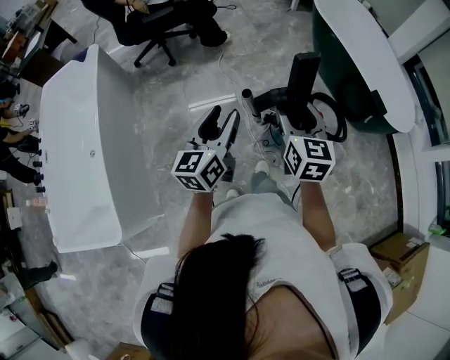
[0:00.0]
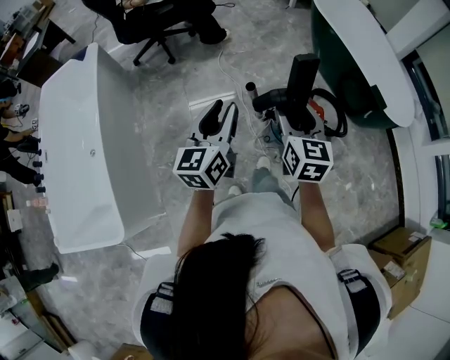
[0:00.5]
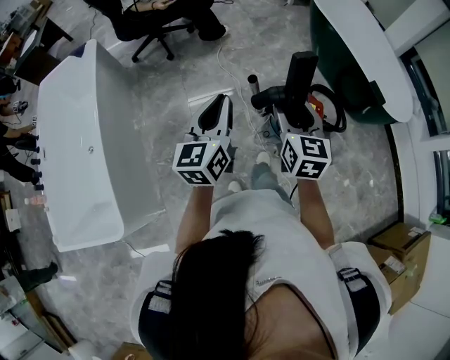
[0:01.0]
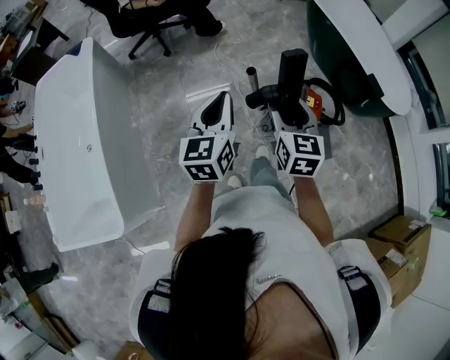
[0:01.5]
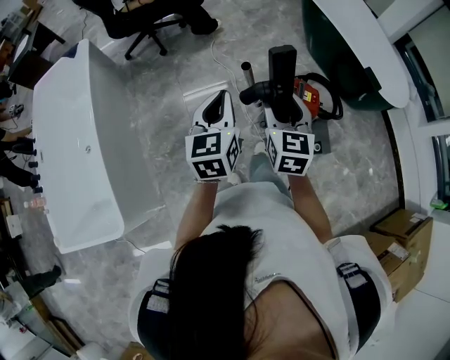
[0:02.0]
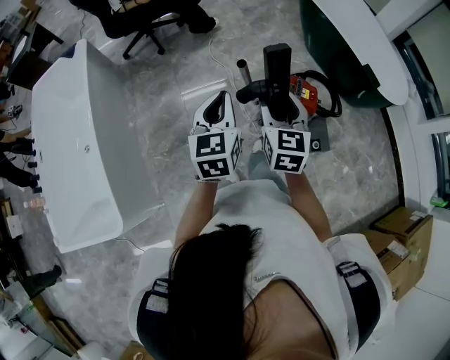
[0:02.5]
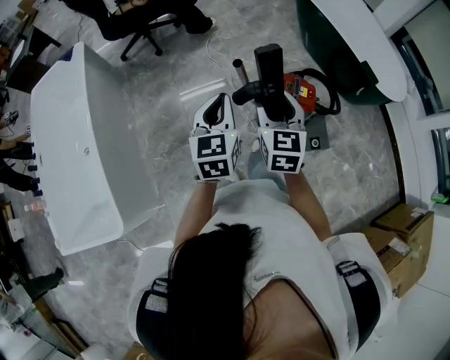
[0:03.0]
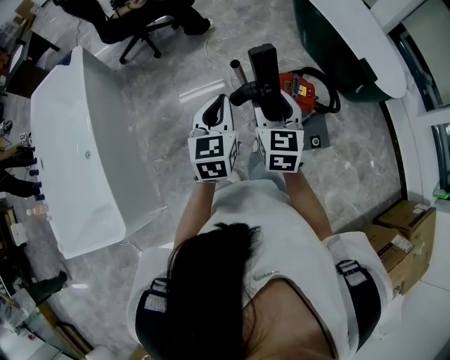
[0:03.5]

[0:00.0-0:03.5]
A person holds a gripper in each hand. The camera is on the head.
0.0 to 2.0 s: The right gripper is displaced backward by roughly 5 cm. The left gripper closes.
2.0 to 3.5 s: The grippers make only small movements.

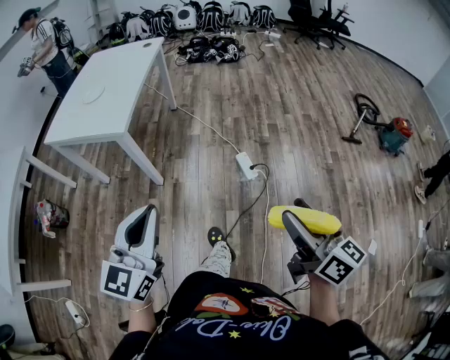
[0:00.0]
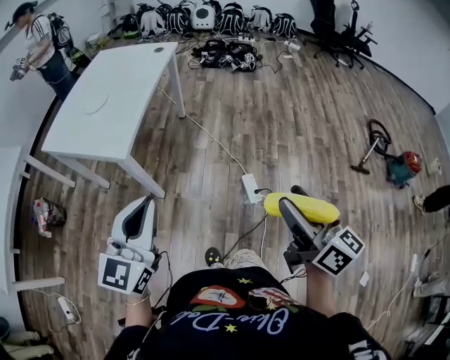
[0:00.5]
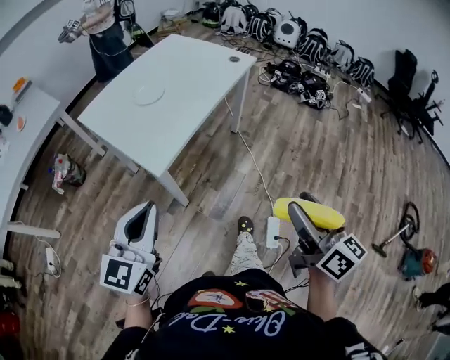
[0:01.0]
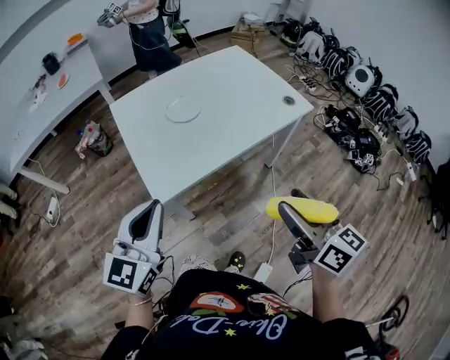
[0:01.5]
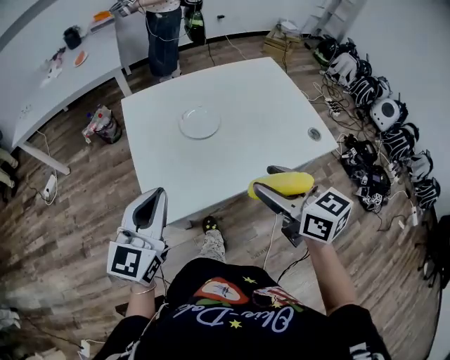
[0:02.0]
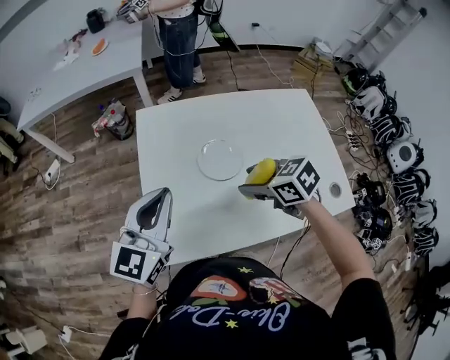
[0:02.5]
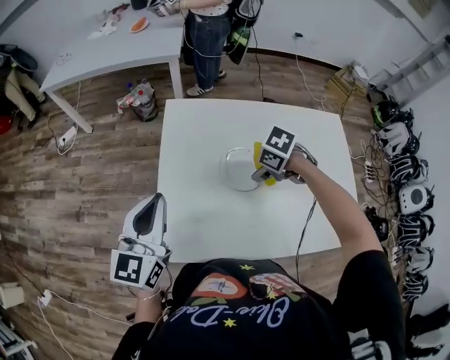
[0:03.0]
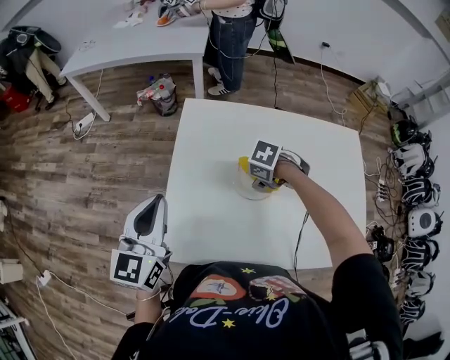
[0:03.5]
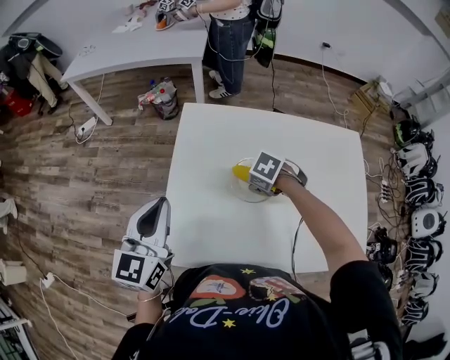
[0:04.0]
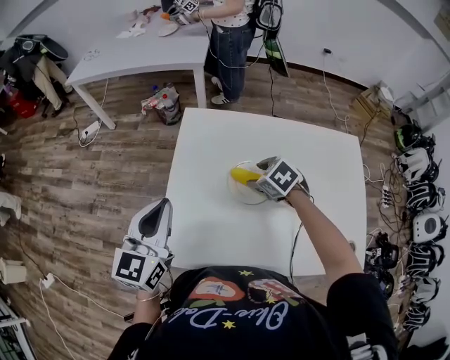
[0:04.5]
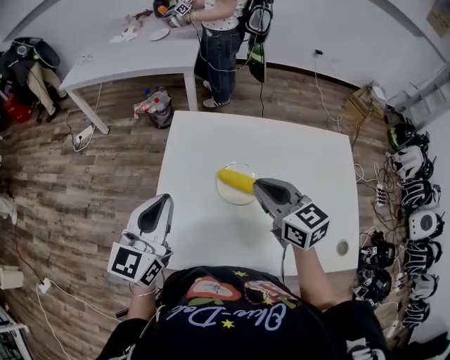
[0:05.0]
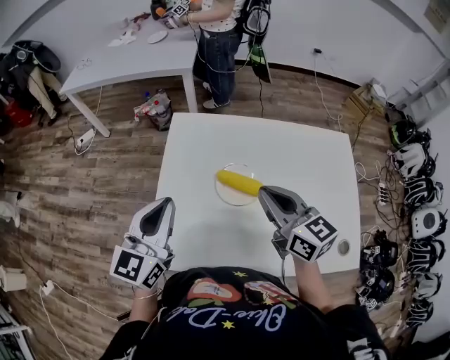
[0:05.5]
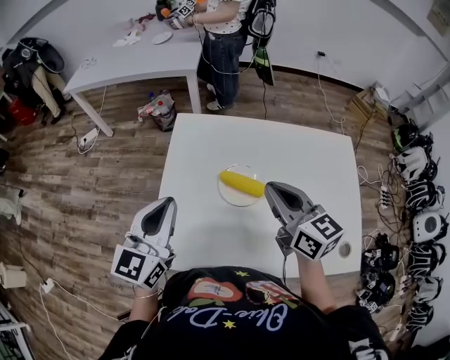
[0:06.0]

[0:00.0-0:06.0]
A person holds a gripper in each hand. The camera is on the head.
0.0 to 2.0 s: Both grippers are carried some 70 cm. The left gripper swivels roughly 60 degrees; the right gripper swivels some 80 degrees.
2.0 to 4.0 s: The left gripper changes place by roughly 15 cm, and changes its angle by roughly 30 degrees. The right gripper moves approximately 40 cm, and tilts its fingers some 60 degrees downward.
4.0 to 6.0 s: The left gripper moves some 5 cm, while the right gripper travels upward by roughly 25 cm, tilts its fingers roughly 70 degrees upward, and closes up.

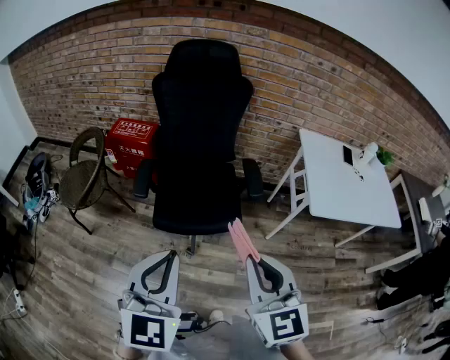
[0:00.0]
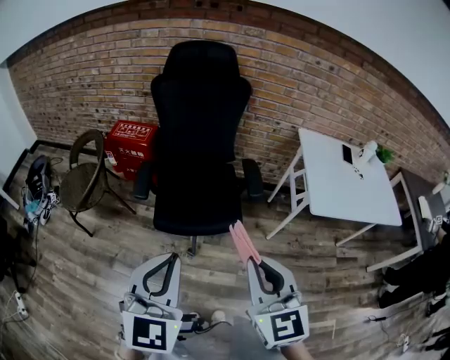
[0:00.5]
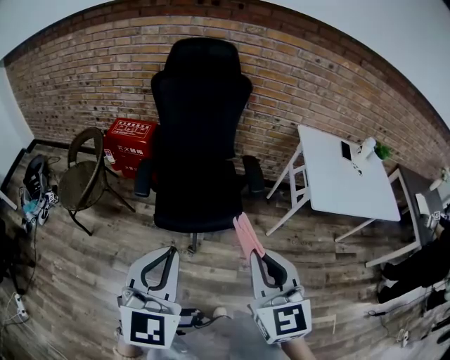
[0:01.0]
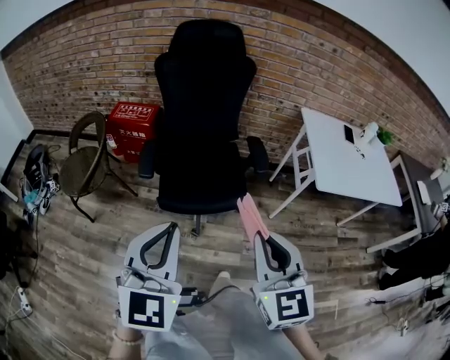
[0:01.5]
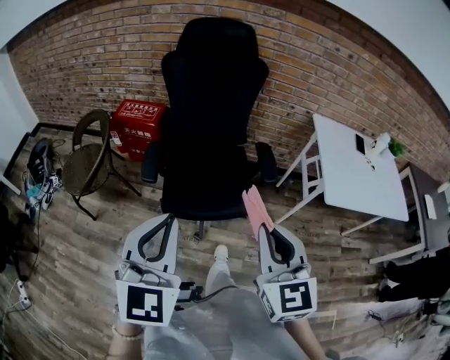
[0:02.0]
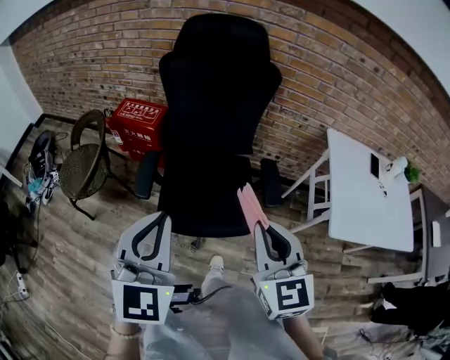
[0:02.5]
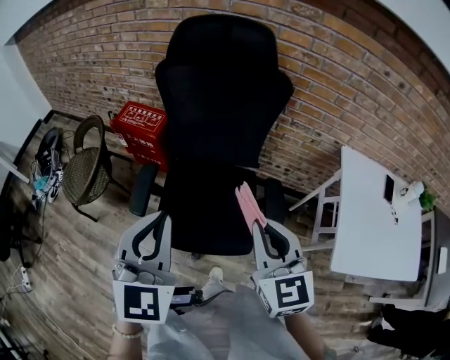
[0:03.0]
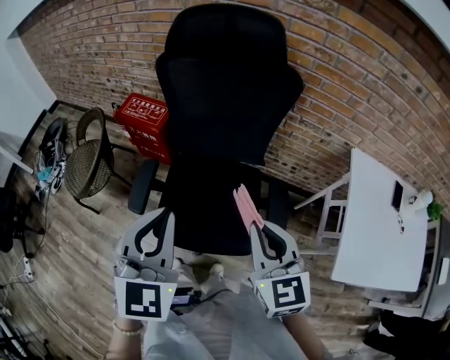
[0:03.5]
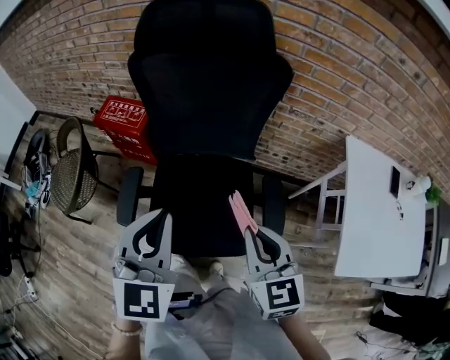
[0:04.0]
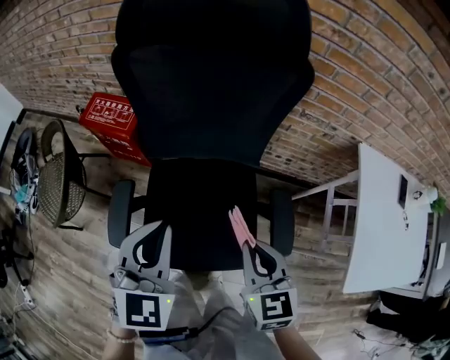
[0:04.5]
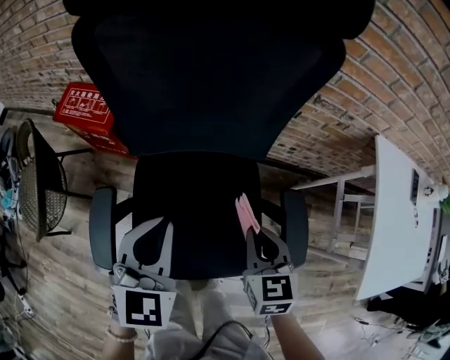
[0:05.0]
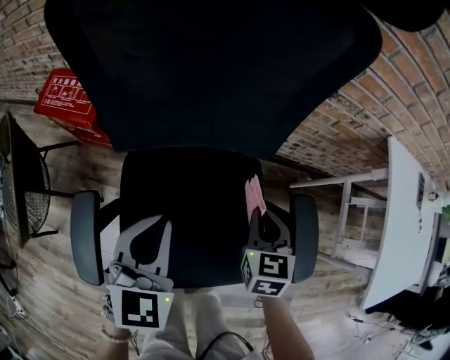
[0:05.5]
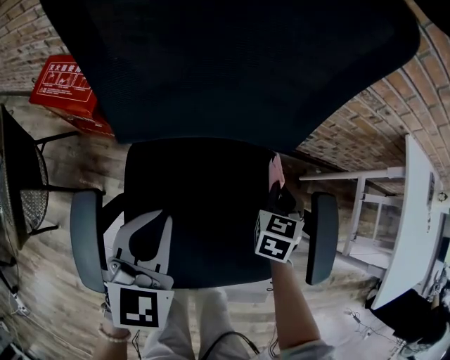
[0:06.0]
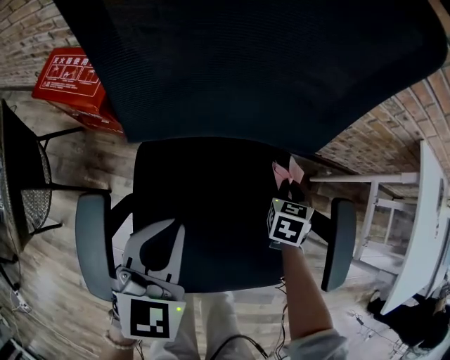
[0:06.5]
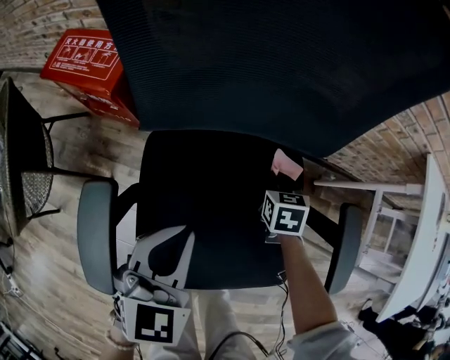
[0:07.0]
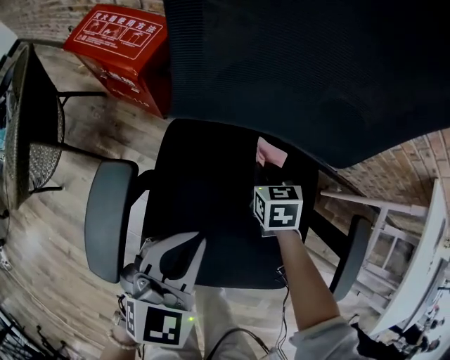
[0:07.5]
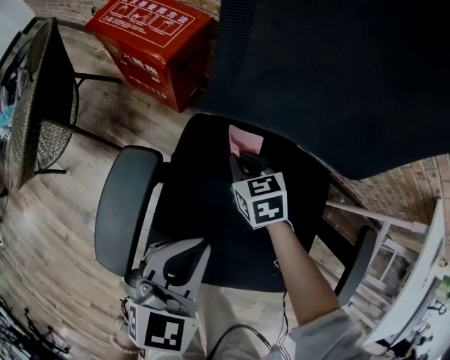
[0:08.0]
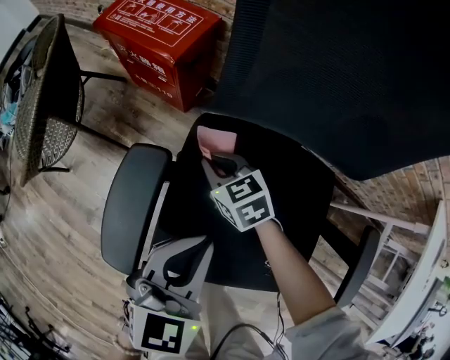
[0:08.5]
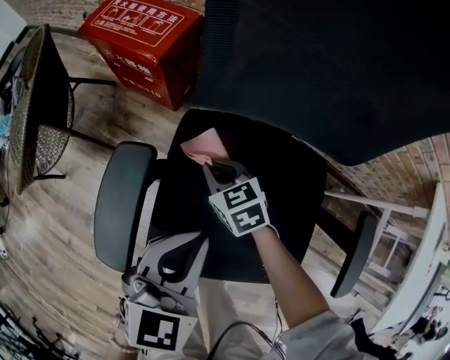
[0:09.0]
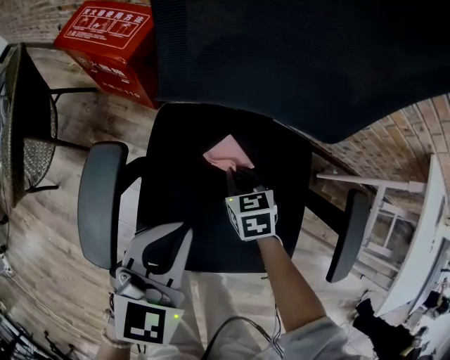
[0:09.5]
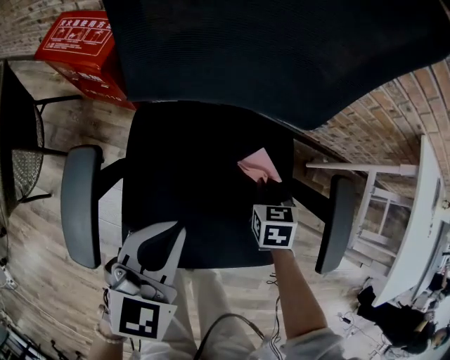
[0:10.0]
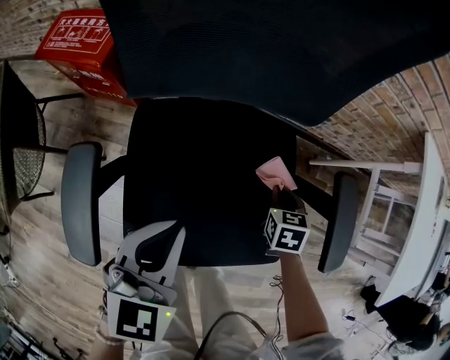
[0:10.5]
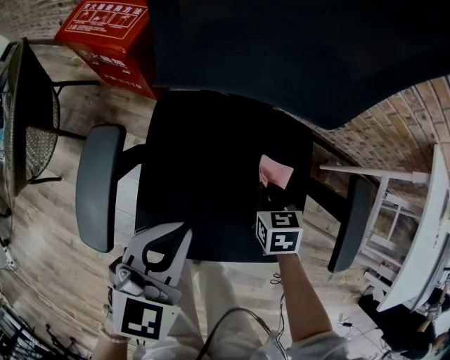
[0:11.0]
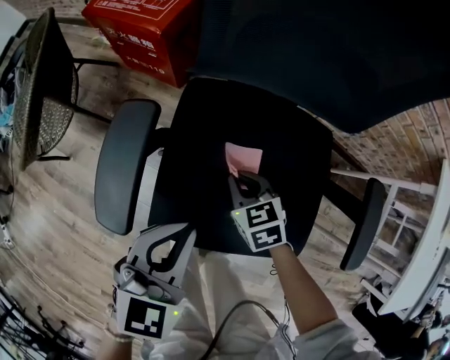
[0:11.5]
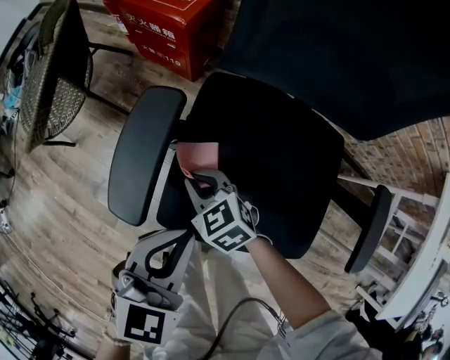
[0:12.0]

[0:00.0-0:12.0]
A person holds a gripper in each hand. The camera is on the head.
0.0 to 2.0 s: The right gripper is displaced forward by roughly 5 cm. The left gripper shifts approximately 10 cm forward and to the left.
2.0 to 4.0 s: Both grippers are carried forward, approximately 40 cm.
4.0 to 6.0 s: Both grippers travel together downward, some 40 cm. The right gripper rotates approximately 40 degrees.
6.0 to 8.0 s: The right gripper shifts by approximately 35 cm, and turns by some 50 degrees. Meanwhile the left gripper changes place by roughly 10 cm.
8.0 to 10.0 s: The right gripper changes place by approximately 25 cm, and turns by about 30 degrees; the left gripper ends up some 5 cm from where it was.
10.0 to 12.0 s: The right gripper ends up approximately 35 cm from where it was, and turns by roughly 60 degrees. The left gripper moves roughly 15 cm.

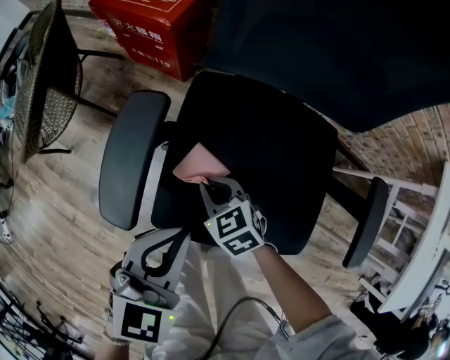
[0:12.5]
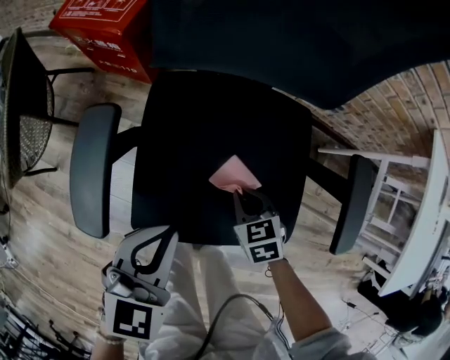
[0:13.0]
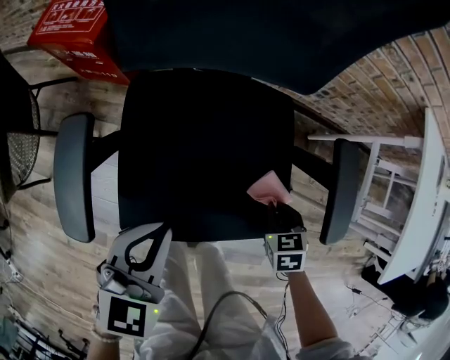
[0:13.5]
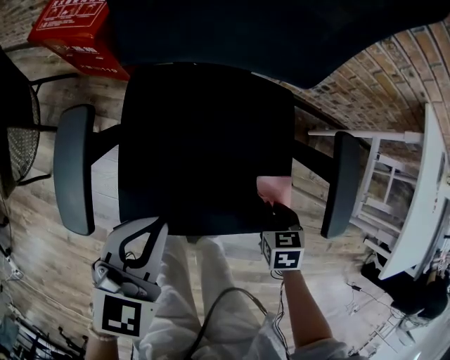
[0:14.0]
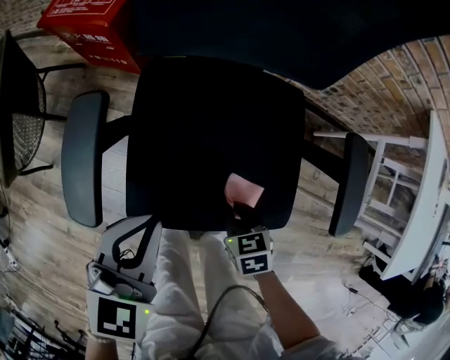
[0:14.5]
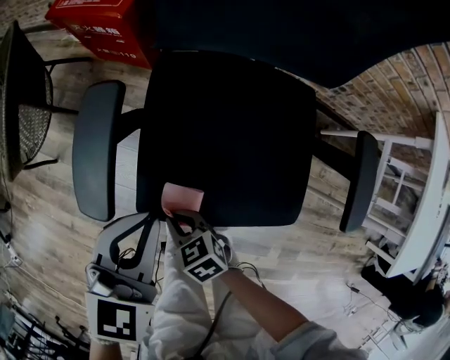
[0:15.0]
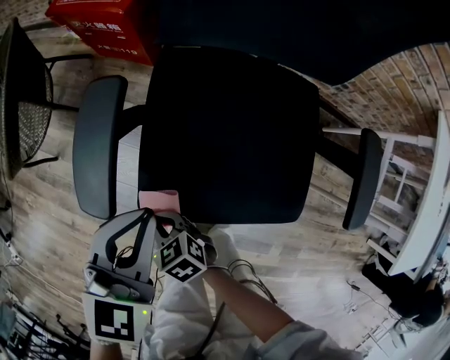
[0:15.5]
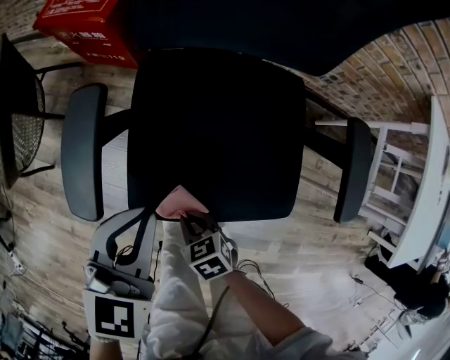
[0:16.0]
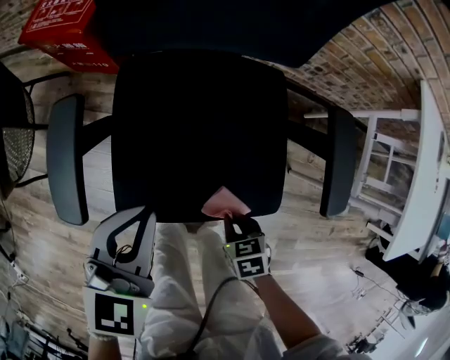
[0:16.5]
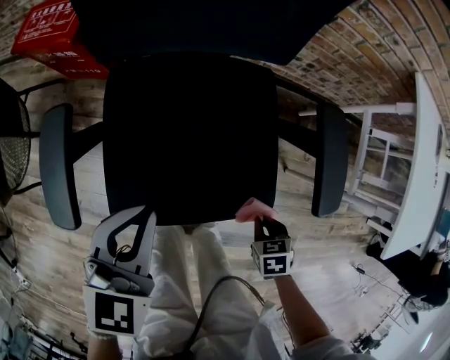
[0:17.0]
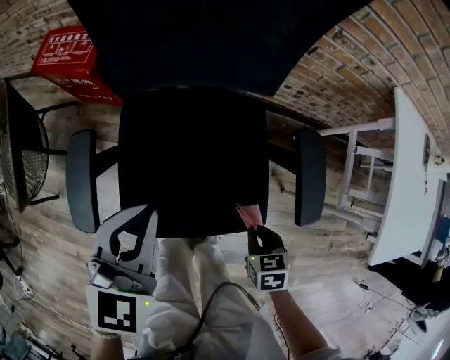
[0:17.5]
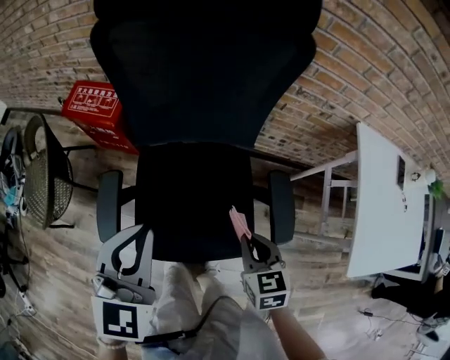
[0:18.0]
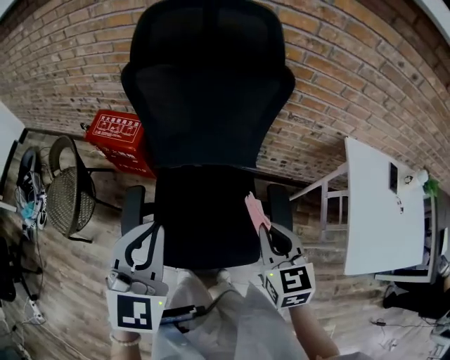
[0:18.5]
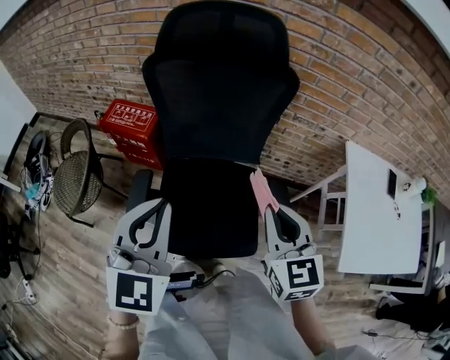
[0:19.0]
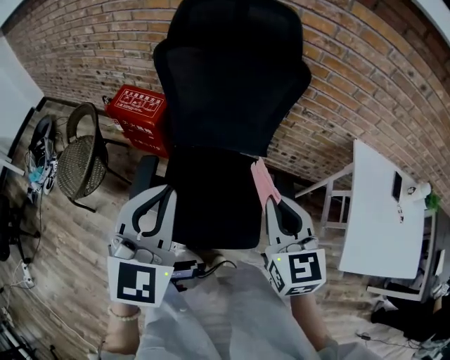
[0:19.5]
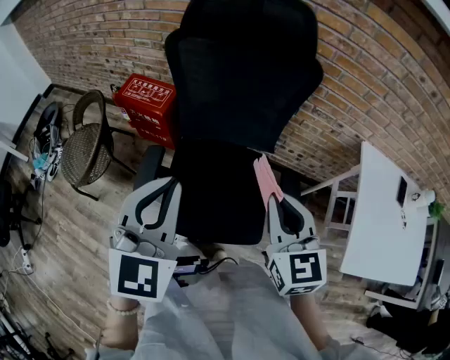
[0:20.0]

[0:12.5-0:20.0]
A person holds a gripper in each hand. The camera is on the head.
12.5 to 14.5 s: The right gripper rotates approximately 30 degrees.
14.5 to 16.5 s: The right gripper is displaced backward by some 10 cm, and travels to the left and back again, approximately 25 cm each way.
16.5 to 18.0 s: Both grippers move upward, roughly 30 cm. The right gripper rotates about 30 degrees.
18.0 to 20.0 s: The left gripper travels upward and backward by about 20 cm, while the right gripper moves upward, some 25 cm, and swivels roughly 30 degrees.
